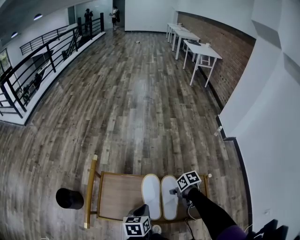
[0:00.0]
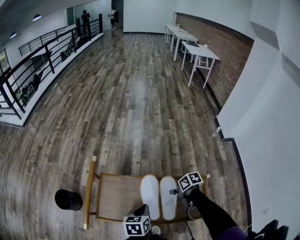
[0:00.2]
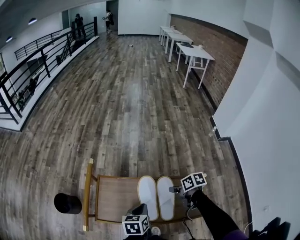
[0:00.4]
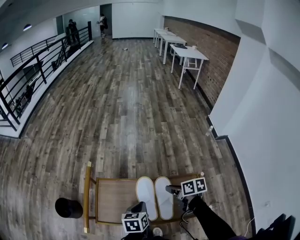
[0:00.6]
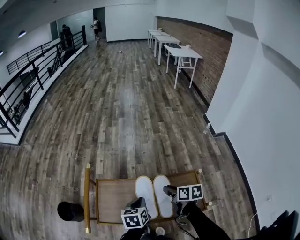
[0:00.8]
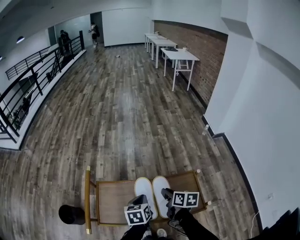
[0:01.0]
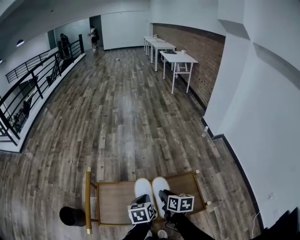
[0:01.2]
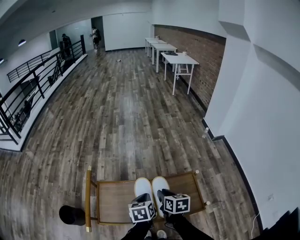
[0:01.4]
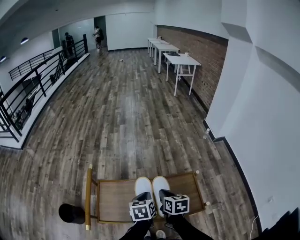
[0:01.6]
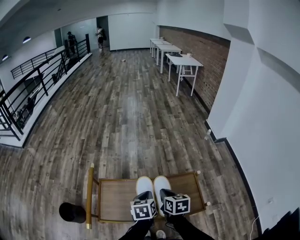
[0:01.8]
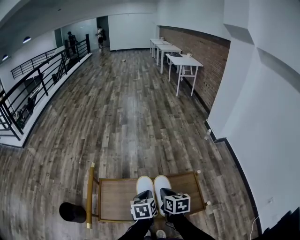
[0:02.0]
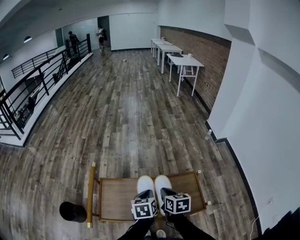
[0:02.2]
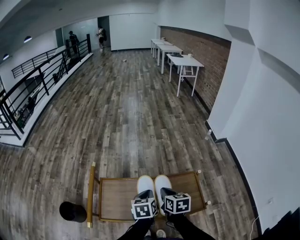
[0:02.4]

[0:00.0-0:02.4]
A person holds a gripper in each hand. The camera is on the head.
0:00.0 to 0:01.2: The left gripper changes place by roughly 5 cm; the right gripper is displaced upward by roughly 10 cm, and changes its angle by roughly 50 degrees.
0:01.2 to 0:02.4: The right gripper closes up.

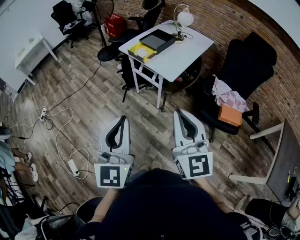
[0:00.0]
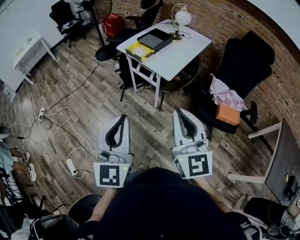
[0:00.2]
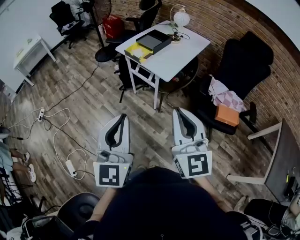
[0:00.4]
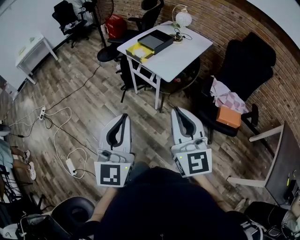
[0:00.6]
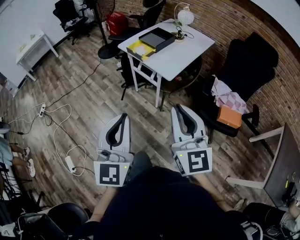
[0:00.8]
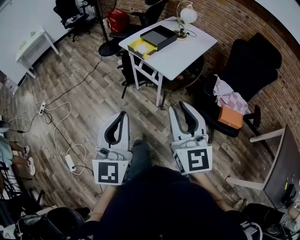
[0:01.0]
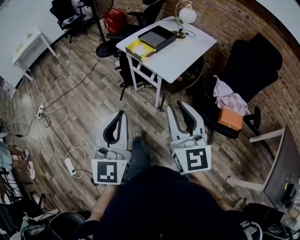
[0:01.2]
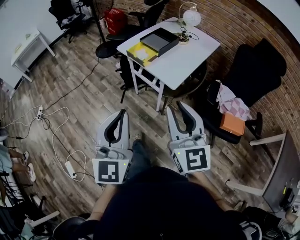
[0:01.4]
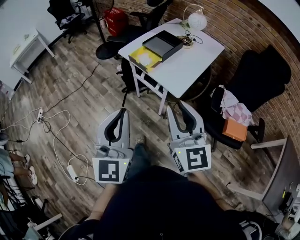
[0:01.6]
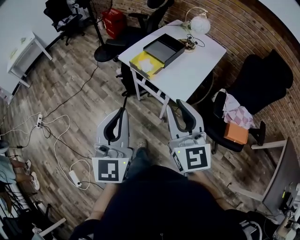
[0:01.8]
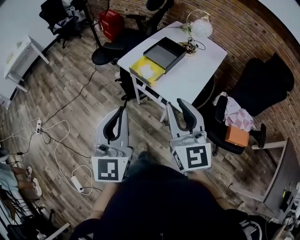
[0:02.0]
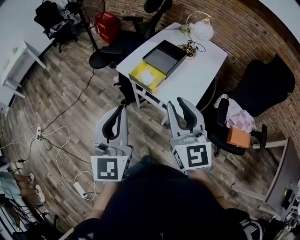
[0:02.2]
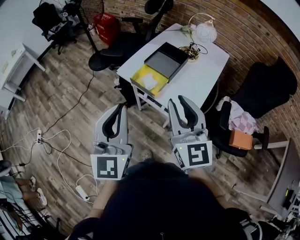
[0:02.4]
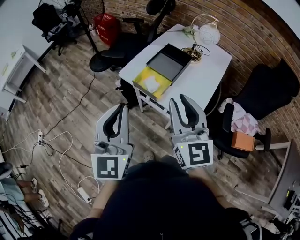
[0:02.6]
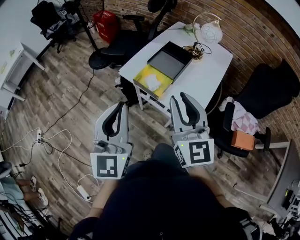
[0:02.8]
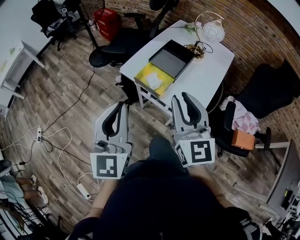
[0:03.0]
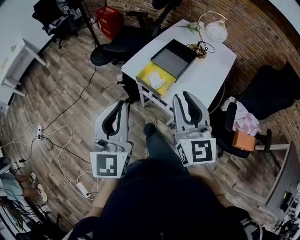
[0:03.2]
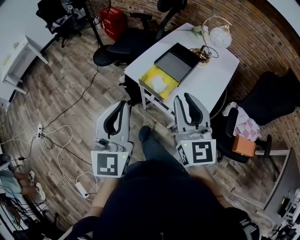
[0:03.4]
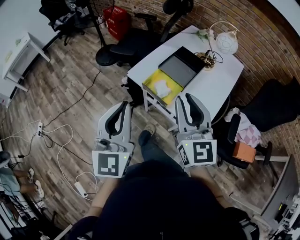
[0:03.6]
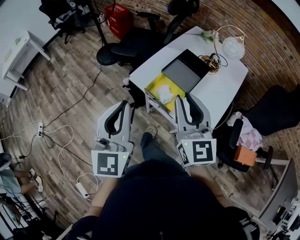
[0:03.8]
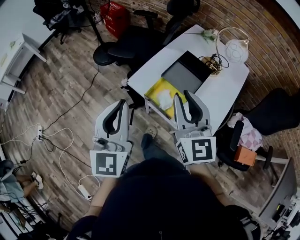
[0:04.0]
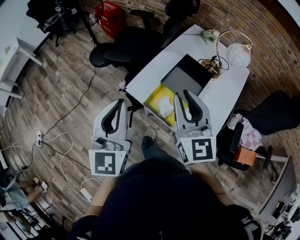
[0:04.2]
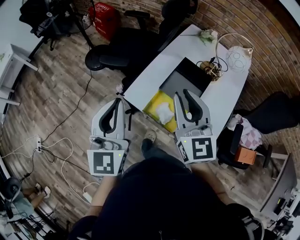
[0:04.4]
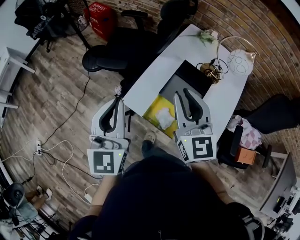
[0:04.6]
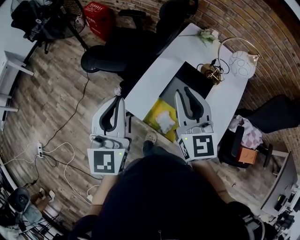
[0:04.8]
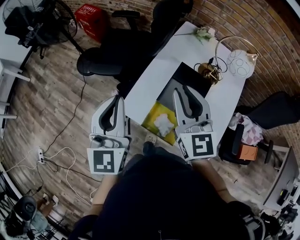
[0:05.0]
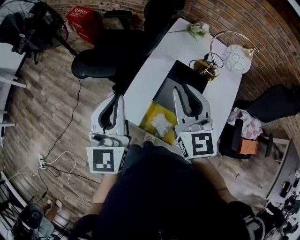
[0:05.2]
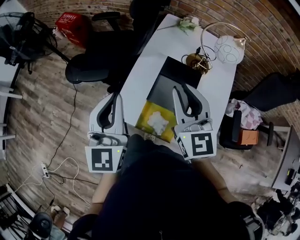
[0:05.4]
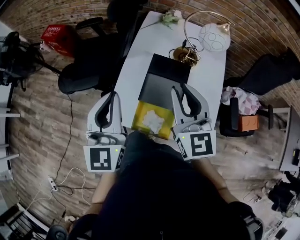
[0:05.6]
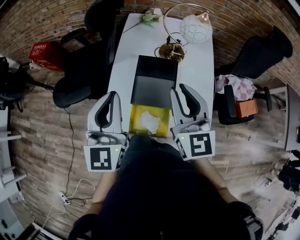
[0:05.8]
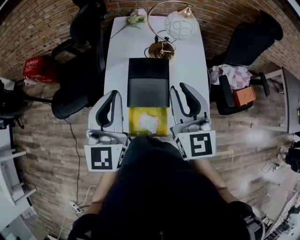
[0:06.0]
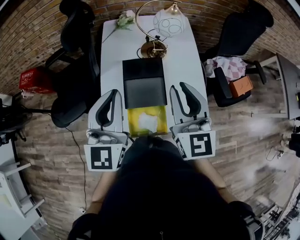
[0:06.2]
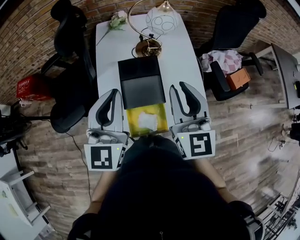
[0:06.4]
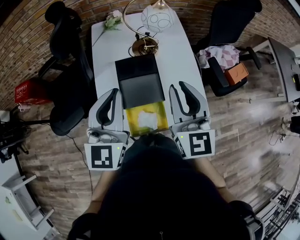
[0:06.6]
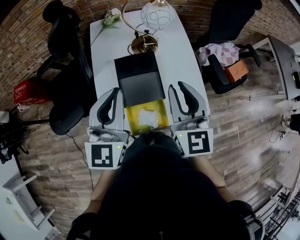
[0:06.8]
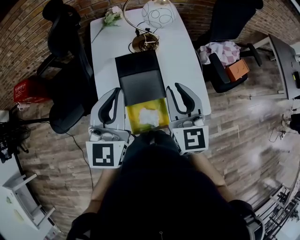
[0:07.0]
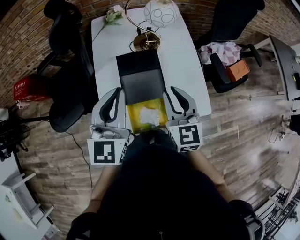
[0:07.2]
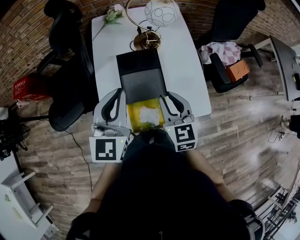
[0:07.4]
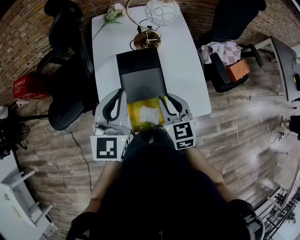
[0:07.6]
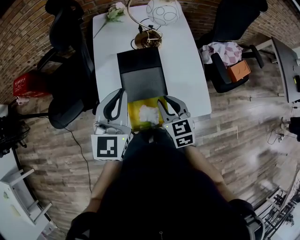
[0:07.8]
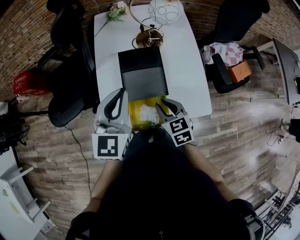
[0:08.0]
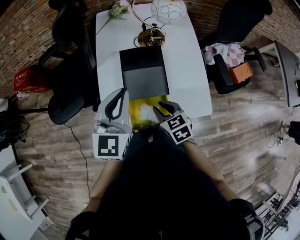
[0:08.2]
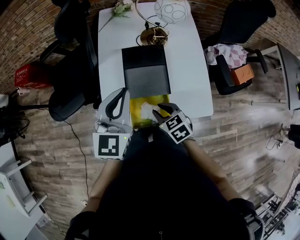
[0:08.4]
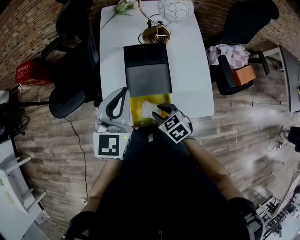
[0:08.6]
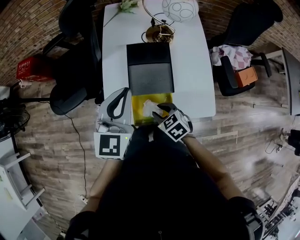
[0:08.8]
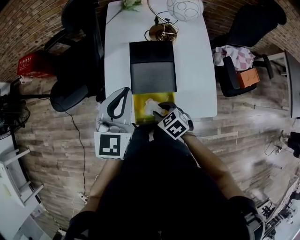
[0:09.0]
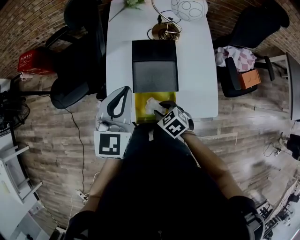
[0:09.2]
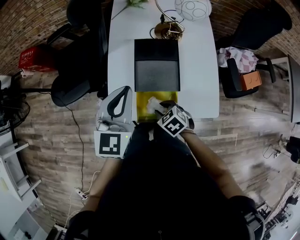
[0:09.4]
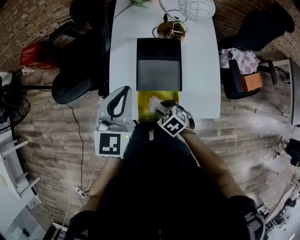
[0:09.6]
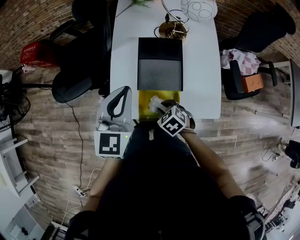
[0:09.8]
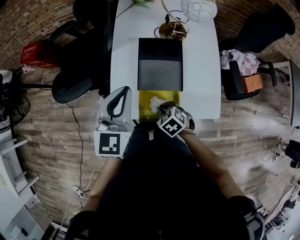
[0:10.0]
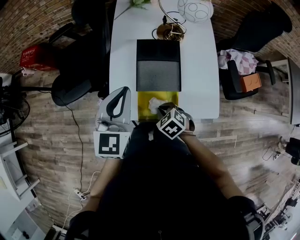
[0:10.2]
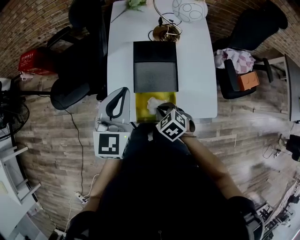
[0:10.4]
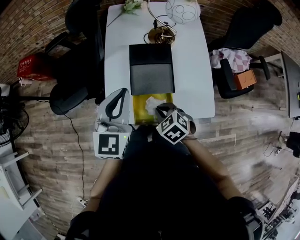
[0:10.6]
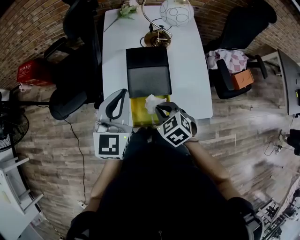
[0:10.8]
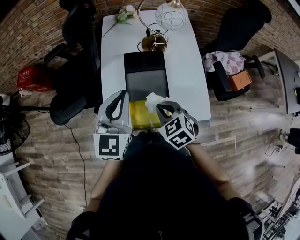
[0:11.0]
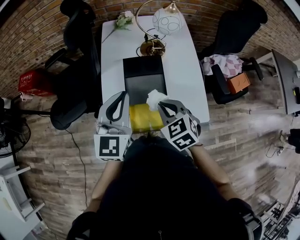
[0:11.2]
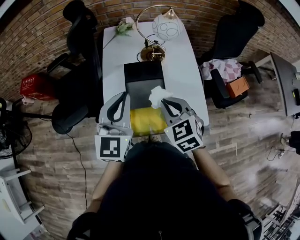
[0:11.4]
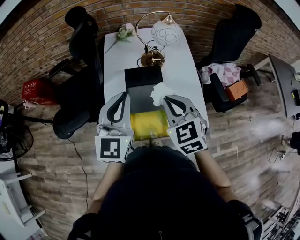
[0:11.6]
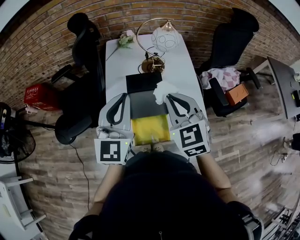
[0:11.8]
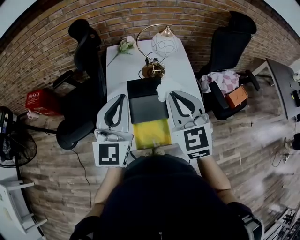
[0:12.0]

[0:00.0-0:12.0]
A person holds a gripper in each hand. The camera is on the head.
0:00.0 to 0:01.6: The grippers both shift forward by some 20 cm.
0:01.6 to 0:03.0: Both grippers travel together forward, roughly 25 cm.
0:03.0 to 0:04.4: The two grippers go some 25 cm forward.
0:04.4 to 0:06.0: The right gripper ends up roughly 15 cm from where it was, and rotates some 40 degrees; the left gripper changes place by some 20 cm, and turns by roughly 40 degrees.
0:06.0 to 0:07.6: The left gripper heads downward, covering roughly 5 cm. Meanwhile the right gripper goes some 15 cm downward, and swivels some 20 degrees.
0:07.6 to 0:09.0: The right gripper travels downward and to the left by roughly 15 cm, and points its fingers about 30 degrees further downward.
0:09.0 to 0:10.4: The right gripper closes.
0:10.4 to 0:12.0: The left gripper travels upward by some 15 cm. Meanwhile the right gripper moves upward, approximately 30 cm, and angles its fingers upward, by some 50 degrees.

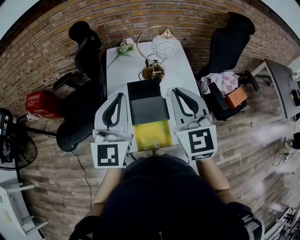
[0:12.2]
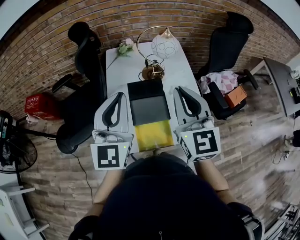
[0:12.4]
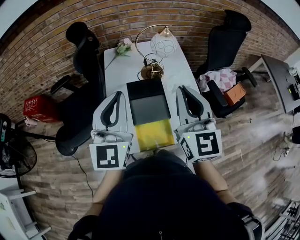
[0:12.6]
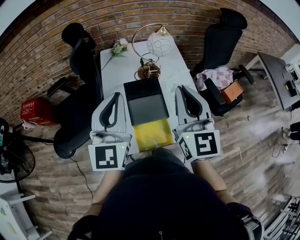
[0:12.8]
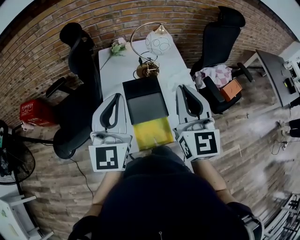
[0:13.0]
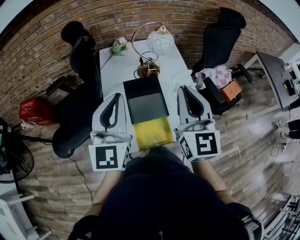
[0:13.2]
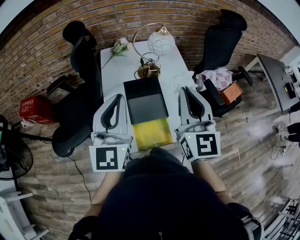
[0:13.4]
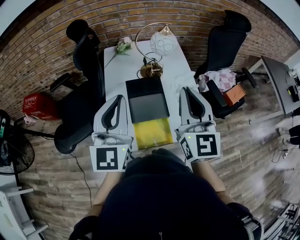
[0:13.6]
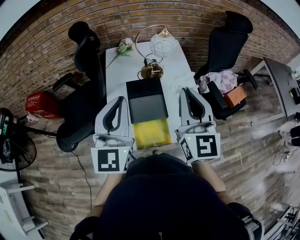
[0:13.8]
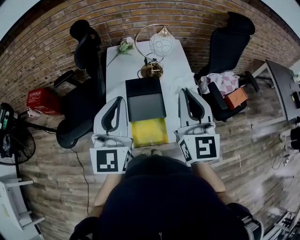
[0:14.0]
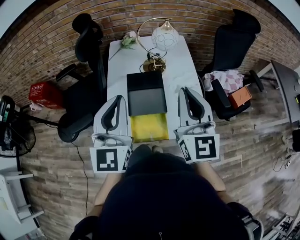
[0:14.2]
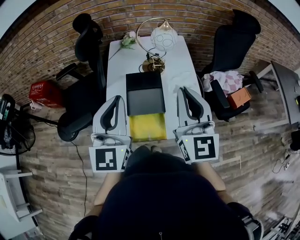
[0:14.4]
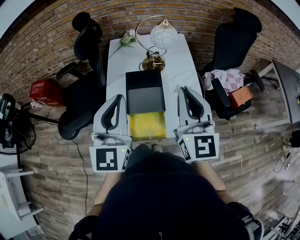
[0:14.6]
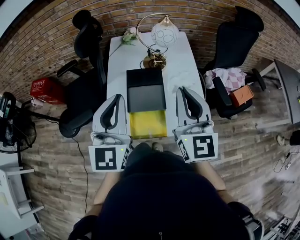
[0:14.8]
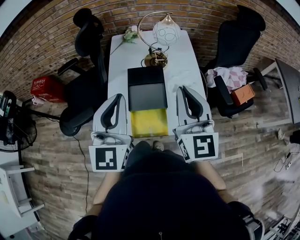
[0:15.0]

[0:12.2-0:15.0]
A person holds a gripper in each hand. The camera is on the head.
0:12.2 to 0:13.6: The grippers make only small movements.
0:13.6 to 0:15.0: The left gripper shifts by approximately 5 cm.

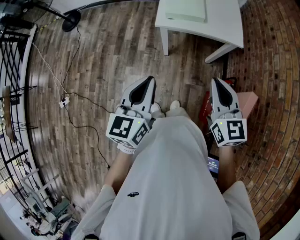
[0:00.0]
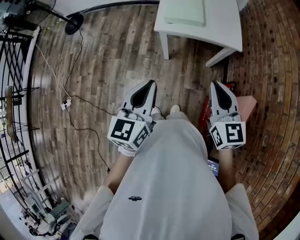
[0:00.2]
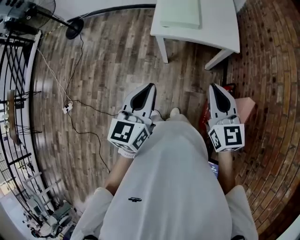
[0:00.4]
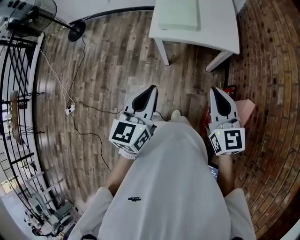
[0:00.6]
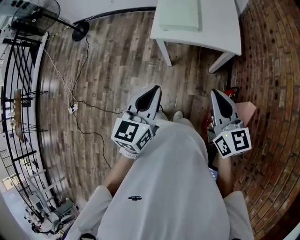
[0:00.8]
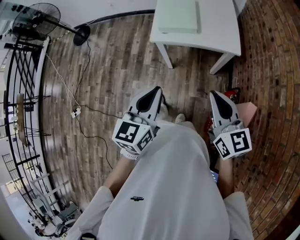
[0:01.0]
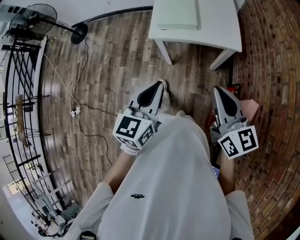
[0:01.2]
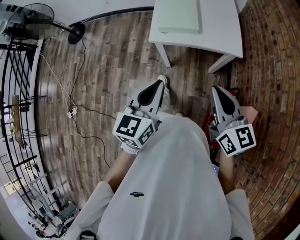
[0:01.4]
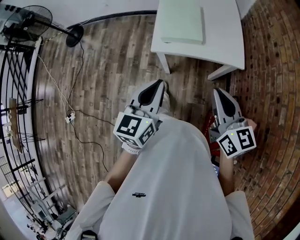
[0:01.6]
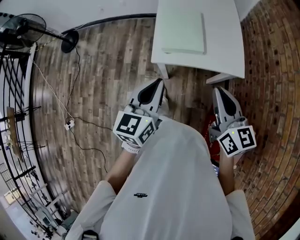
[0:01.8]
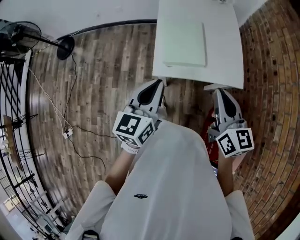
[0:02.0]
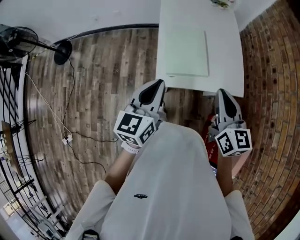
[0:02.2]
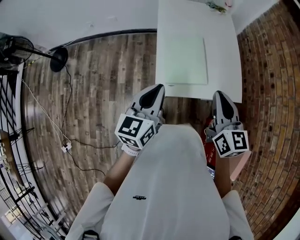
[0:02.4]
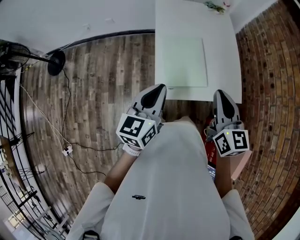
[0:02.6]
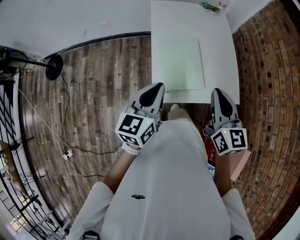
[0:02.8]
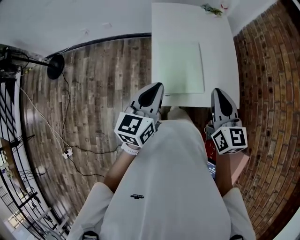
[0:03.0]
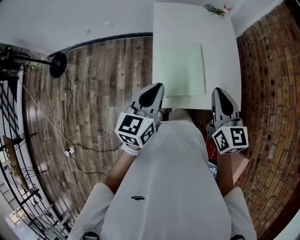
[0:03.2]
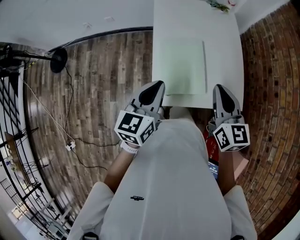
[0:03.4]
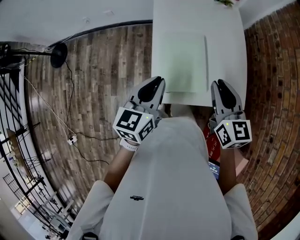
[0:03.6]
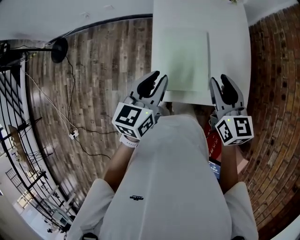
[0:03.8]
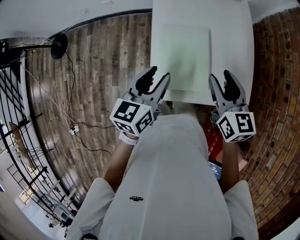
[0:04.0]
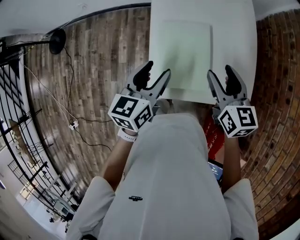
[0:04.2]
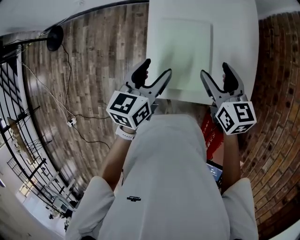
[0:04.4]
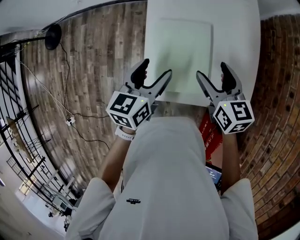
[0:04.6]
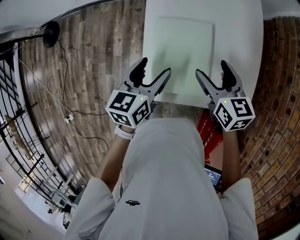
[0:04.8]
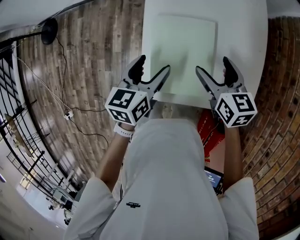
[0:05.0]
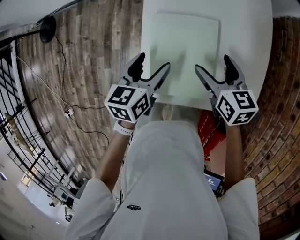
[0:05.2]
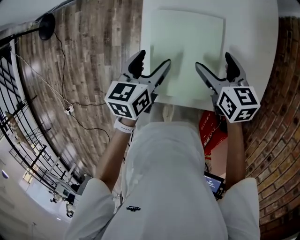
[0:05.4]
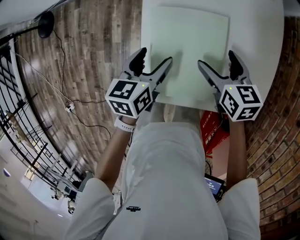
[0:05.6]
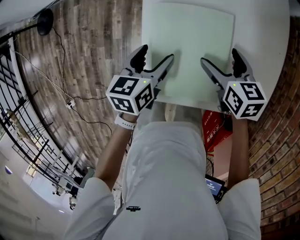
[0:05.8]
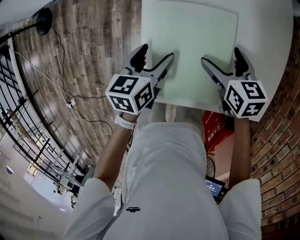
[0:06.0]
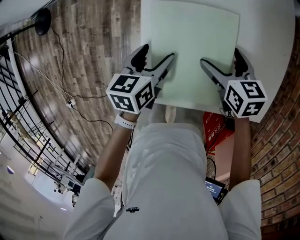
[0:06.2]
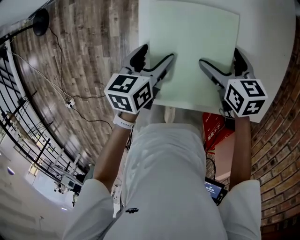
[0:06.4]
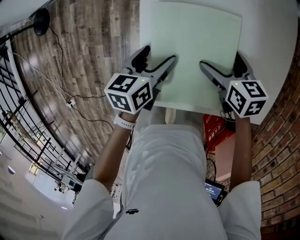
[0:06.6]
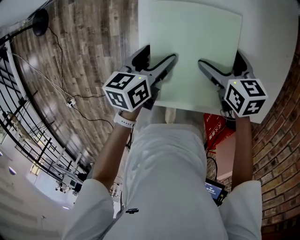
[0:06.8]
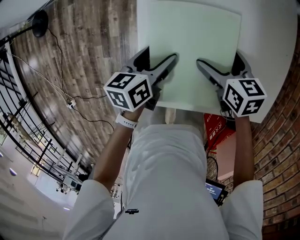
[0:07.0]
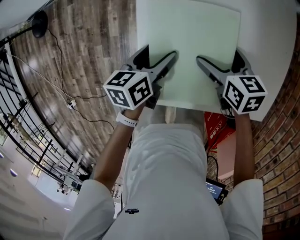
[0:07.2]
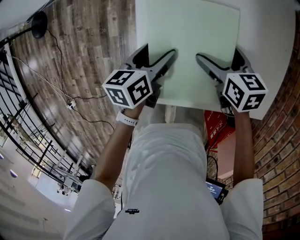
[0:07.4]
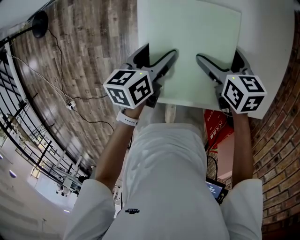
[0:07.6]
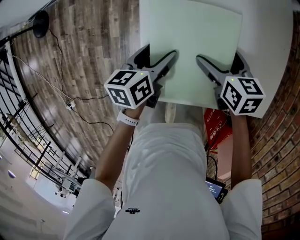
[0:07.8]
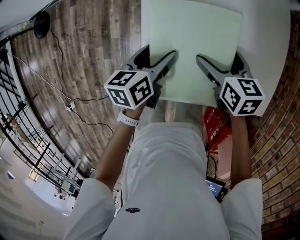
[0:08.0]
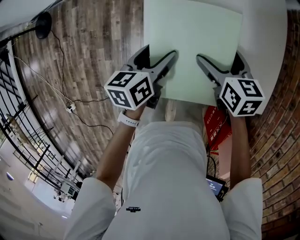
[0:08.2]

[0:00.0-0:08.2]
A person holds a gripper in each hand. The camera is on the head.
0:00.0 to 0:01.6: The left gripper travels forward and to the right by some 15 cm. The right gripper shifts roughly 10 cm forward.
0:01.6 to 0:03.2: The grippers both shift forward by roughly 30 cm.
0:03.2 to 0:05.0: Both grippers move downward and forward, some 20 cm. The left gripper turns by approximately 20 degrees, and opens up. Meanwhile the right gripper rotates roughly 30 degrees, and opens its fingers.
0:05.0 to 0:06.6: Both grippers travel together downward, approximately 15 cm.
0:06.6 to 0:08.2: The right gripper heads upward, covering approximately 5 cm.
